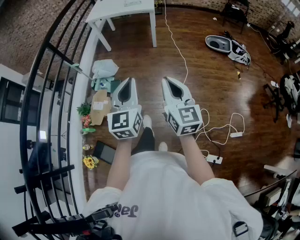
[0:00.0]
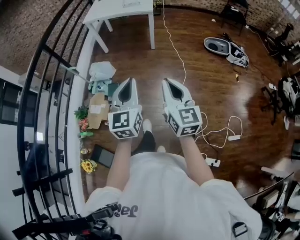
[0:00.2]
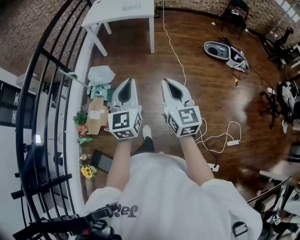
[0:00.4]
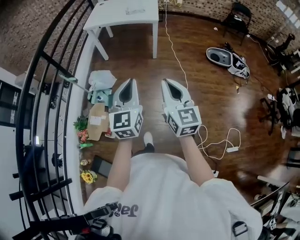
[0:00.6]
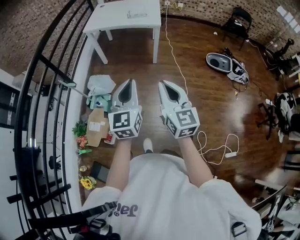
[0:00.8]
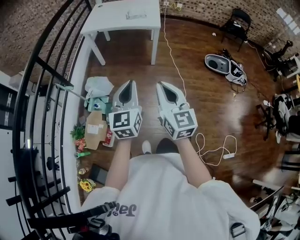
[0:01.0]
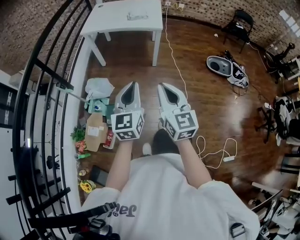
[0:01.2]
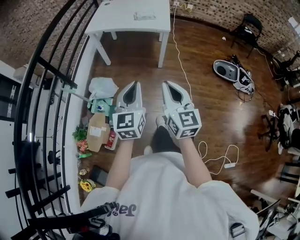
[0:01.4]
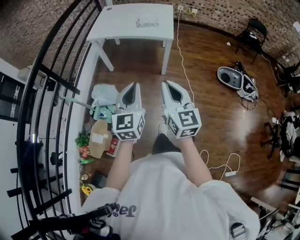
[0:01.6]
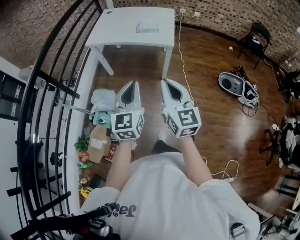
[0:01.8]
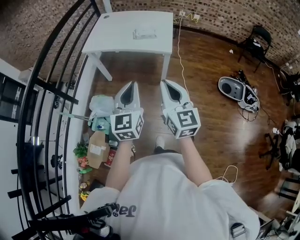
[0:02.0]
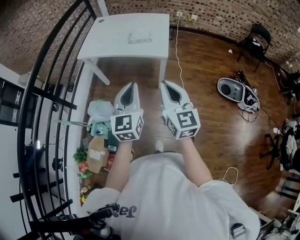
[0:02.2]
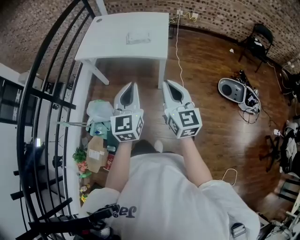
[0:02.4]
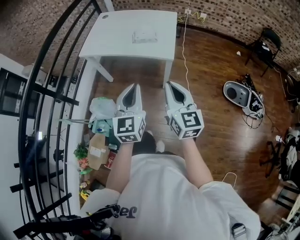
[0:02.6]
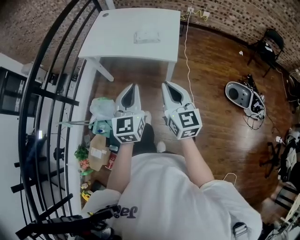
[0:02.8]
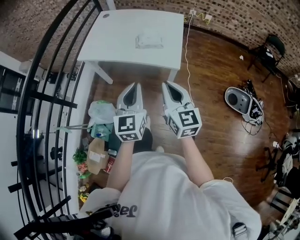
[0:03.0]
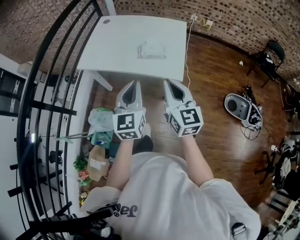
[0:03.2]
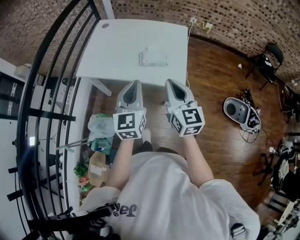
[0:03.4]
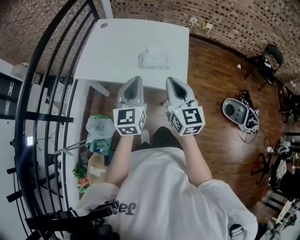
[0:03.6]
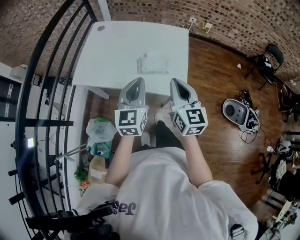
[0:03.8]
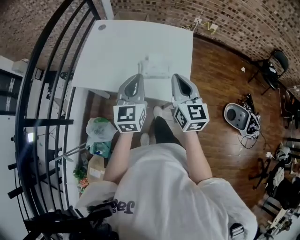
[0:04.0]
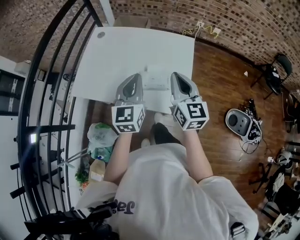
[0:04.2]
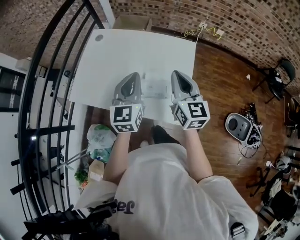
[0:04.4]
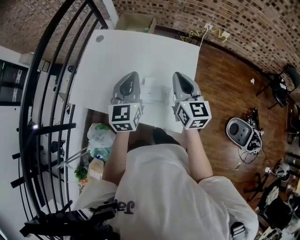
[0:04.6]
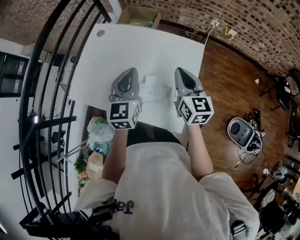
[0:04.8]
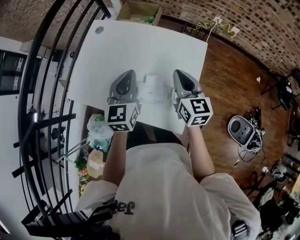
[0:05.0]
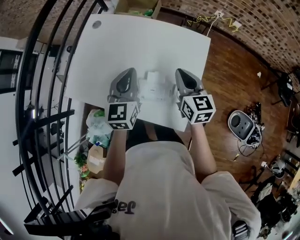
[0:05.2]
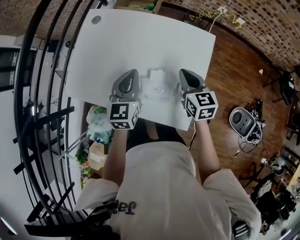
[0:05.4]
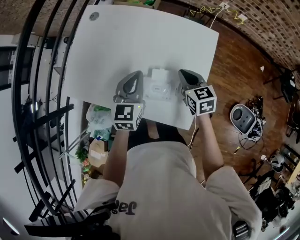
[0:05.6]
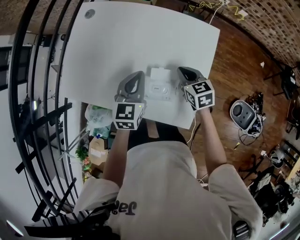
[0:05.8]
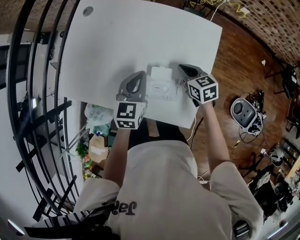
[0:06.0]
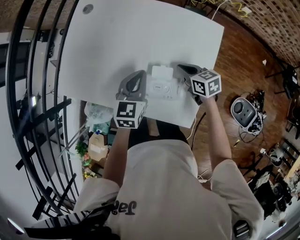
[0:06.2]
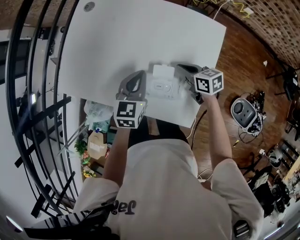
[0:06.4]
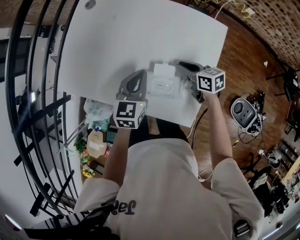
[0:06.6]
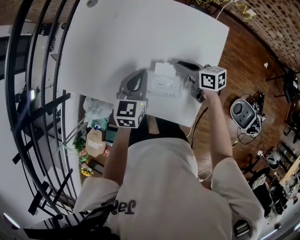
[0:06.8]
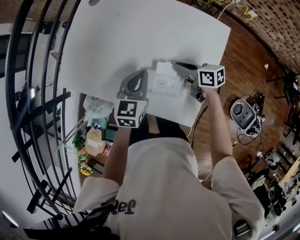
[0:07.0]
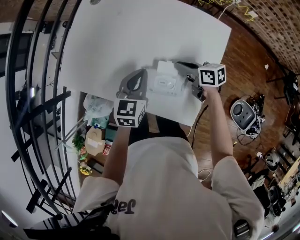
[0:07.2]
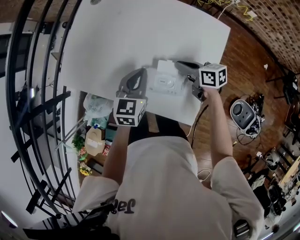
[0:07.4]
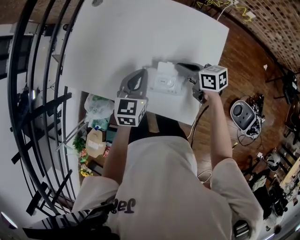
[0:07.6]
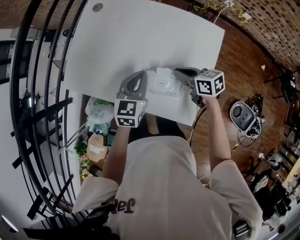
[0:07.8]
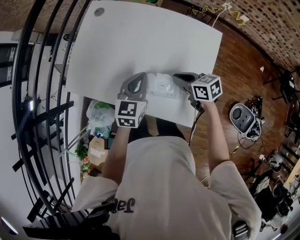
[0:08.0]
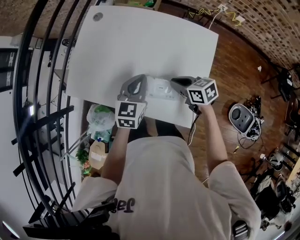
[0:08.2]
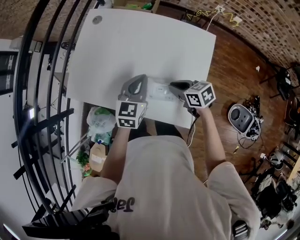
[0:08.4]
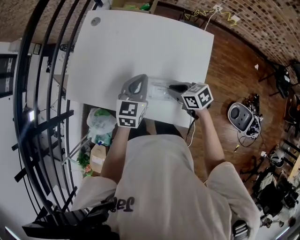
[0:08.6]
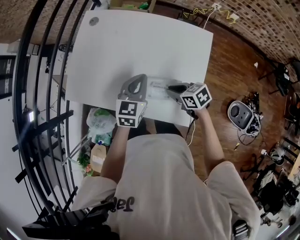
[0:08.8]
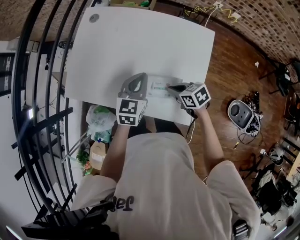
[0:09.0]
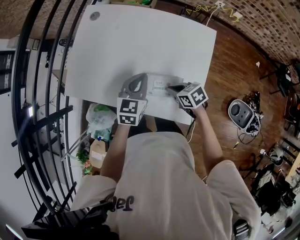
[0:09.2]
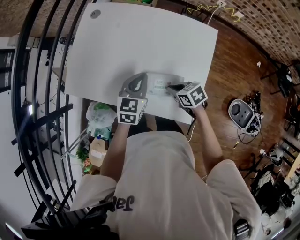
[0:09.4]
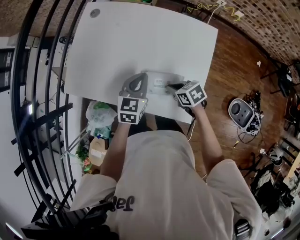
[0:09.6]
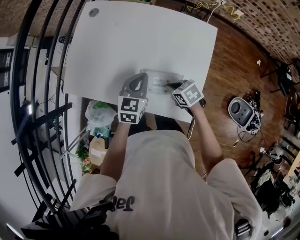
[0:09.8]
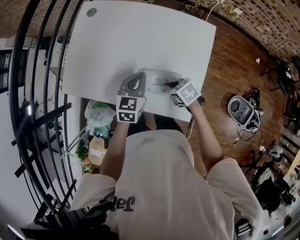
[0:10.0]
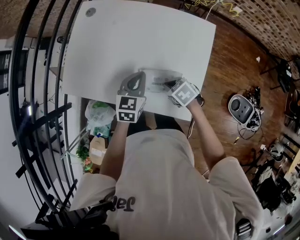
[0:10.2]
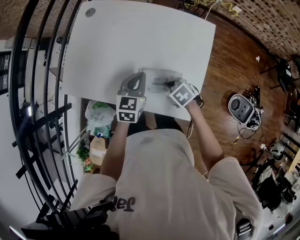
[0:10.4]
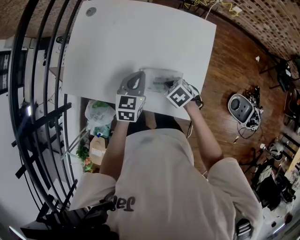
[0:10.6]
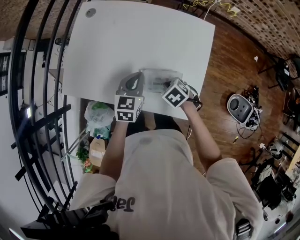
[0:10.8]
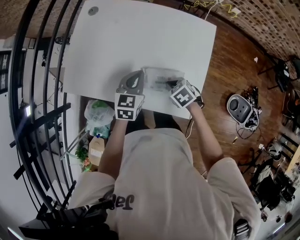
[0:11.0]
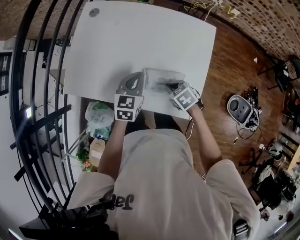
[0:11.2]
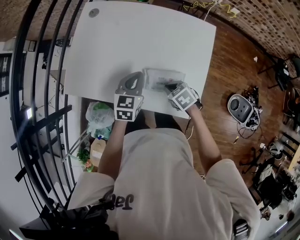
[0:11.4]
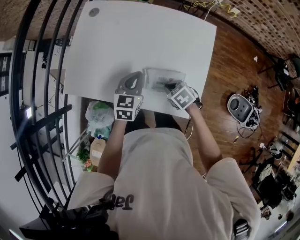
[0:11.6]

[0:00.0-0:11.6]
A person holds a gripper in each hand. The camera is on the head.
0.0 to 1.4 s: Both grippers move forward, approximately 40 cm.
1.4 to 2.8 s: Both grippers travel together forward, approximately 35 cm.
2.8 to 4.4 s: Both grippers are carried forward, about 50 cm.
4.4 to 5.8 s: Both grippers travel together downward and forward, roughly 25 cm. The right gripper points its fingers approximately 30 degrees further downward.
5.8 to 7.2 s: The right gripper shifts by roughly 5 cm, and turns by roughly 40 degrees.
7.2 to 8.8 s: The right gripper travels backward and to the left by approximately 10 cm, and swivels about 20 degrees; the left gripper shifts by approximately 5 cm.
8.8 to 10.2 s: The right gripper swivels roughly 20 degrees. Meanwhile the left gripper ends up approximately 5 cm from where it was.
10.2 to 11.6 s: The grippers make only small movements.

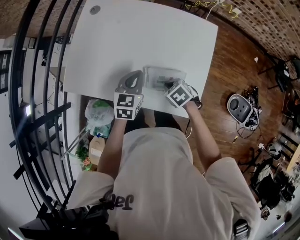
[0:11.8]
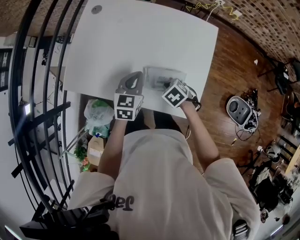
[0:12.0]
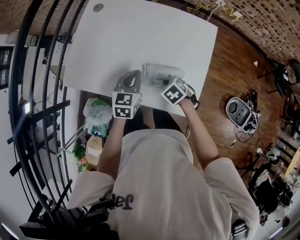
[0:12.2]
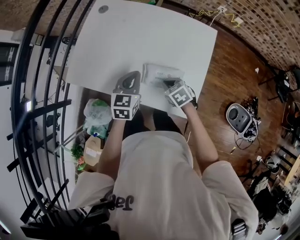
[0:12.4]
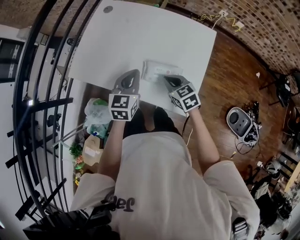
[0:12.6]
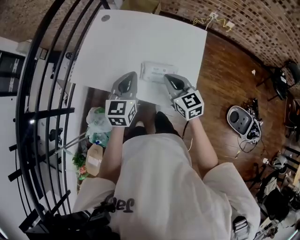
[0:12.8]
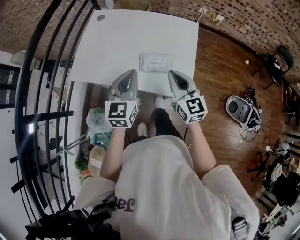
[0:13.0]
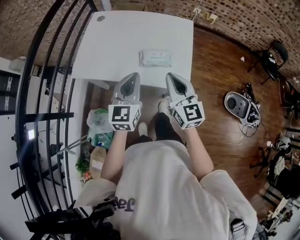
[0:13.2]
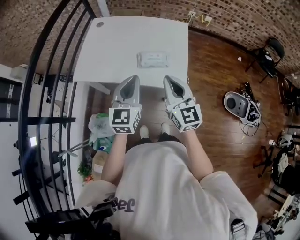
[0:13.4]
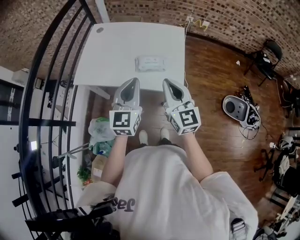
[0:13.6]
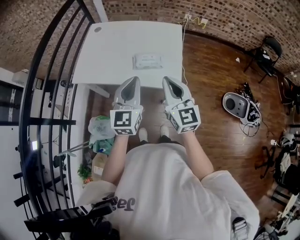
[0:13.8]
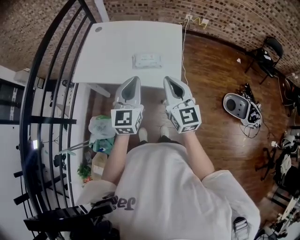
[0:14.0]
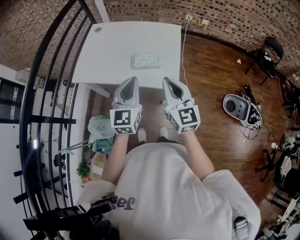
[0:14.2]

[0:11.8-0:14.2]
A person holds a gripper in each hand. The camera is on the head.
11.8 to 13.0 s: Both grippers travel together upward and backward, some 25 cm. The right gripper tips its fingers upward by about 60 degrees, while the left gripper swivels approximately 20 degrees.
13.0 to 14.2 s: The right gripper shifts some 15 cm backward and upward. Meanwhile the left gripper moves backward, to the right and upward, about 15 cm.

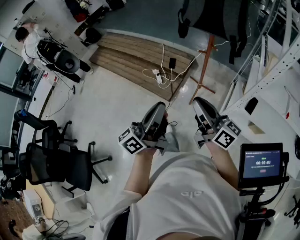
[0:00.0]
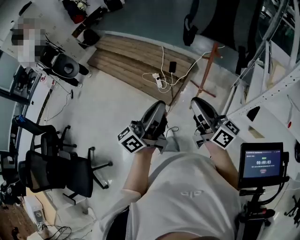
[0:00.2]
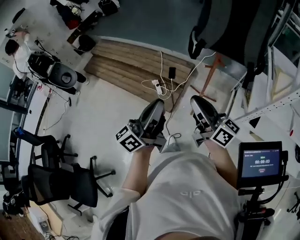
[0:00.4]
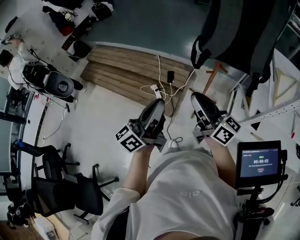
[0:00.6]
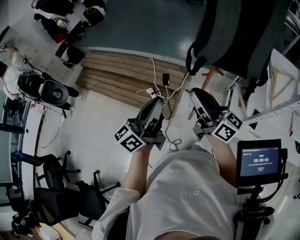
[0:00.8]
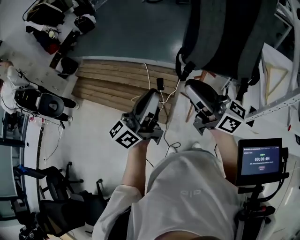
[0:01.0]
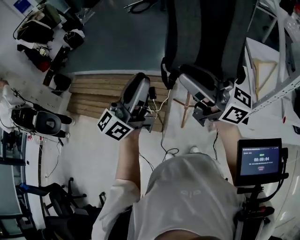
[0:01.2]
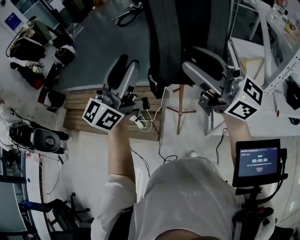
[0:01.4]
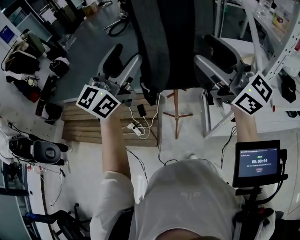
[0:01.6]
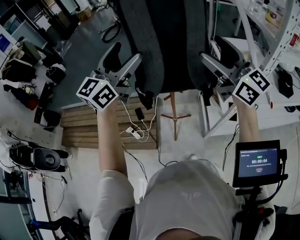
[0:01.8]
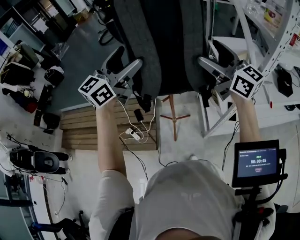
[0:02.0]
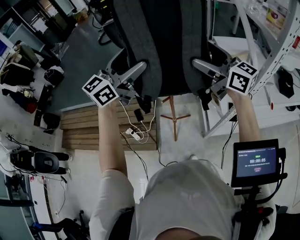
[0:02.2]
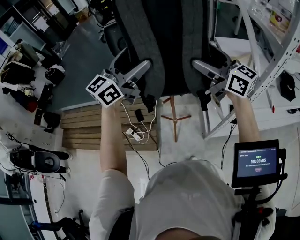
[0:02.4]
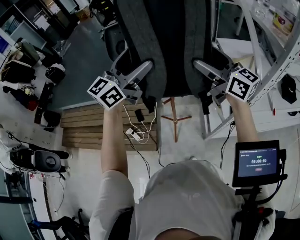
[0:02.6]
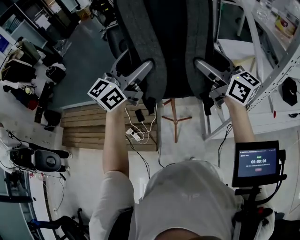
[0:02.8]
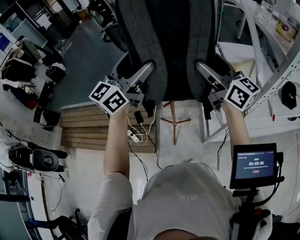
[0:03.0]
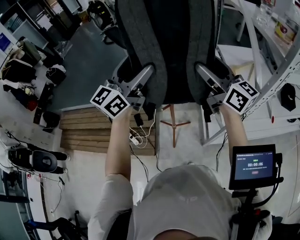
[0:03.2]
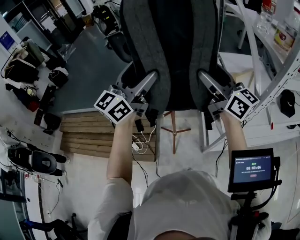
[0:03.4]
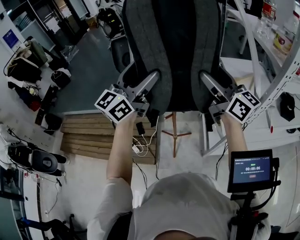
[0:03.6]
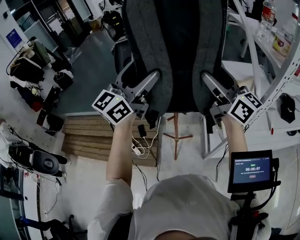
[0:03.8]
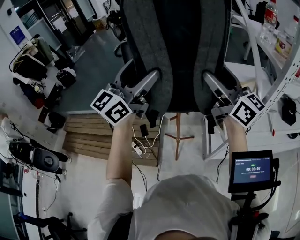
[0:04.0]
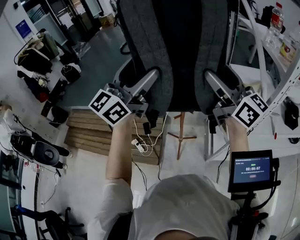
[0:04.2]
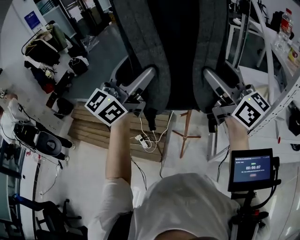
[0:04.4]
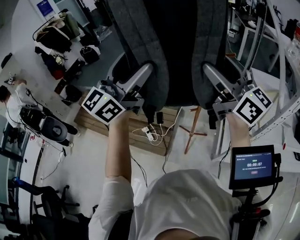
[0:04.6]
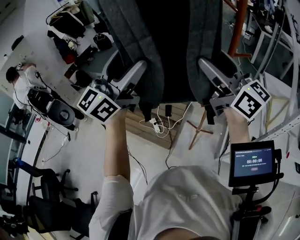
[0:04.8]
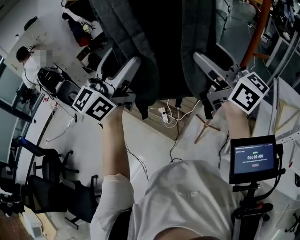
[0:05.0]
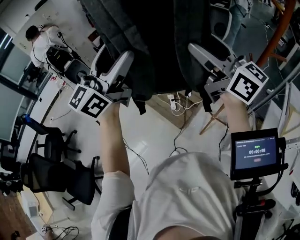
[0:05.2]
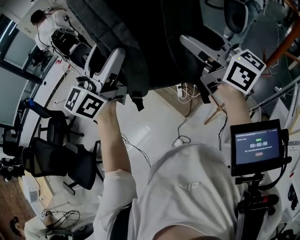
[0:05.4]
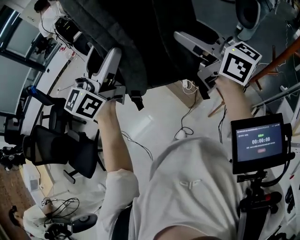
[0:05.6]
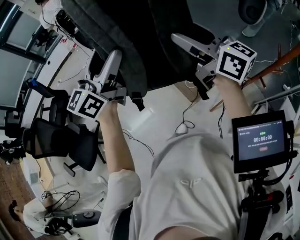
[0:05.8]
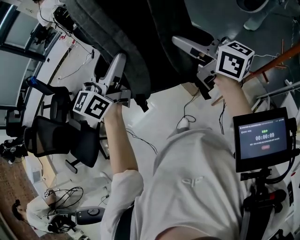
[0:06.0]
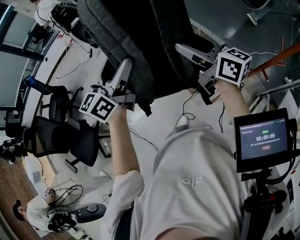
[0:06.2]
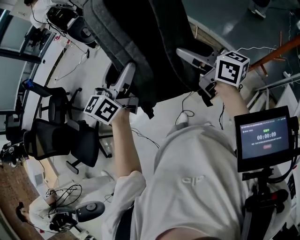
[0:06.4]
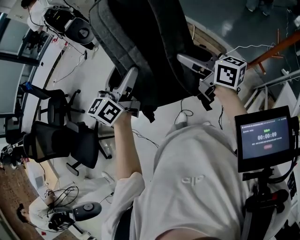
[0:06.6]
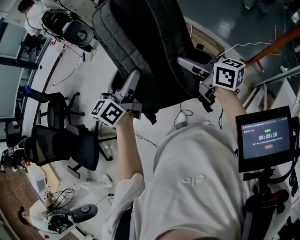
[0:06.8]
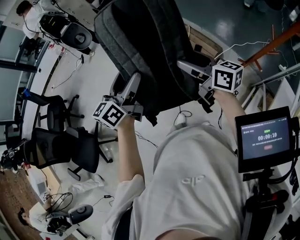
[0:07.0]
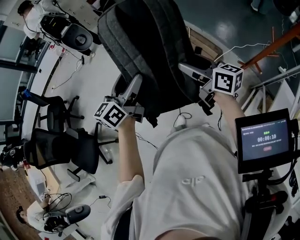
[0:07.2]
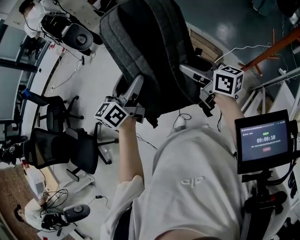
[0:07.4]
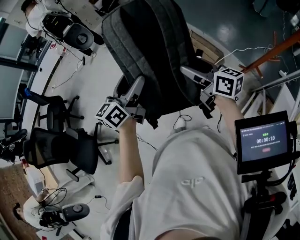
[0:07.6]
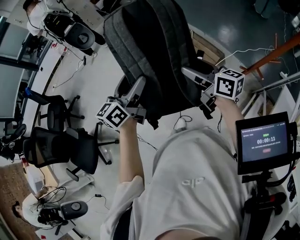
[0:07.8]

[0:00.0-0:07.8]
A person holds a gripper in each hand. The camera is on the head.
0.0 to 1.6 s: The right gripper moves upward and forward, approximately 40 cm, rolls counterclockwise, seen from behind, by about 50 degrees, and opens up. Meanwhile the left gripper shifts approximately 50 cm forward and upward, swivels approximately 50 degrees, and opens.
1.6 to 3.2 s: The right gripper goes some 15 cm forward and downward, and swivels approximately 20 degrees, while the left gripper heads forward, covering approximately 5 cm.
3.2 to 4.6 s: The left gripper goes approximately 20 cm backward, upward and to the left. The right gripper travels upward, to the left and backward by some 15 cm.
4.6 to 6.2 s: The right gripper changes place by roughly 40 cm, and changes its angle by some 60 degrees. Meanwhile the left gripper shifts by about 40 cm, and swivels roughly 60 degrees.
6.2 to 7.8 s: The grippers both shift downward by approximately 10 cm.

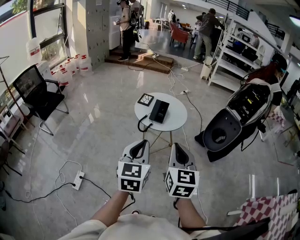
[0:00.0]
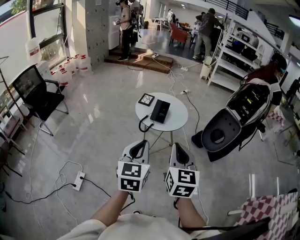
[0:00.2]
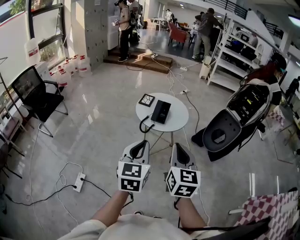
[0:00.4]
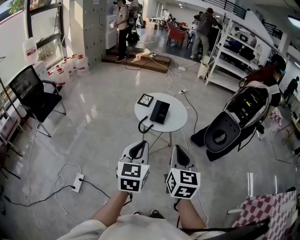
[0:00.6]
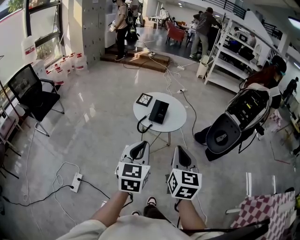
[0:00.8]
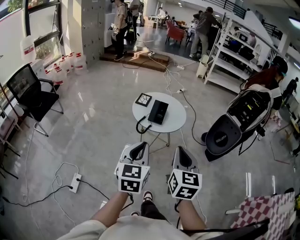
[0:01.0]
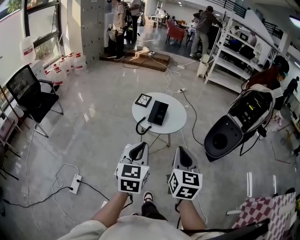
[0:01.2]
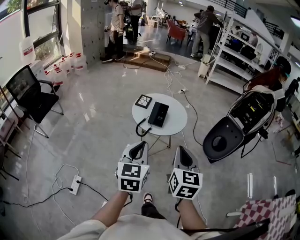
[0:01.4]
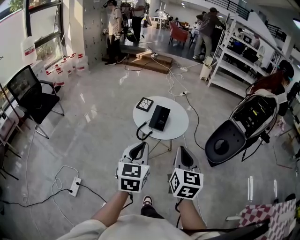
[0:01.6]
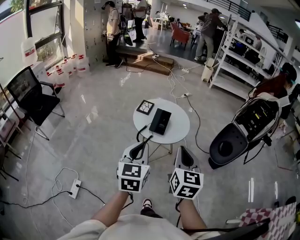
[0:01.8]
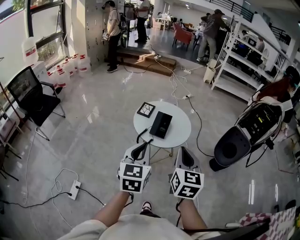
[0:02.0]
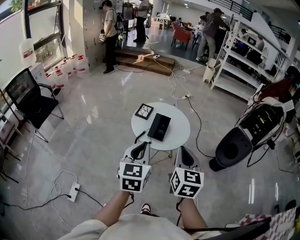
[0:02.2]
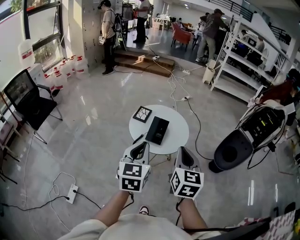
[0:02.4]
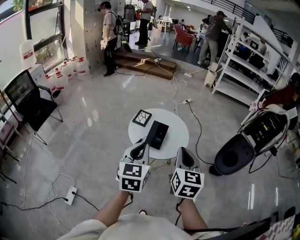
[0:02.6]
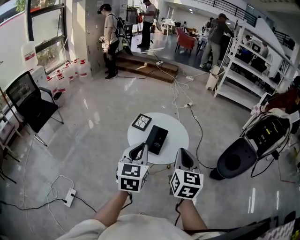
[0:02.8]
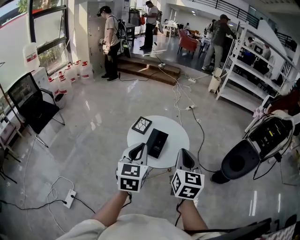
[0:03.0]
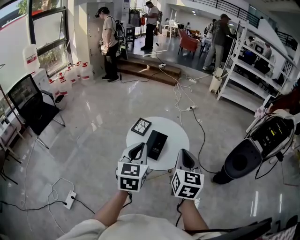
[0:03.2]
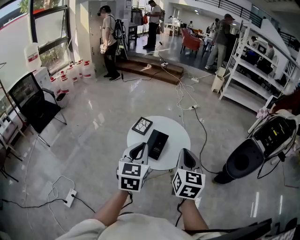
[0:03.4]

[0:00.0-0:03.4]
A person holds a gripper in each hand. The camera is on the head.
0.0 to 1.6 s: Both grippers travel together forward, approximately 10 cm.
1.6 to 3.4 s: Both grippers travel together forward, roughly 20 cm.
